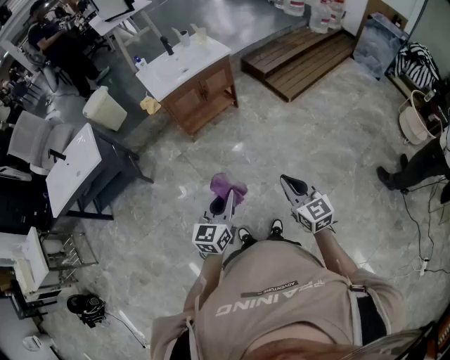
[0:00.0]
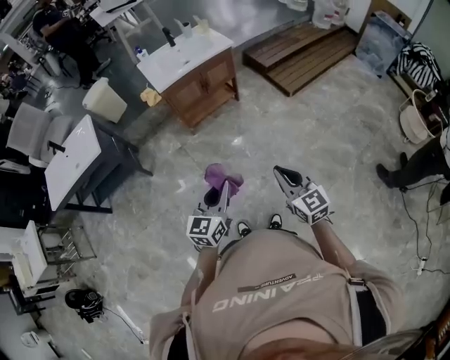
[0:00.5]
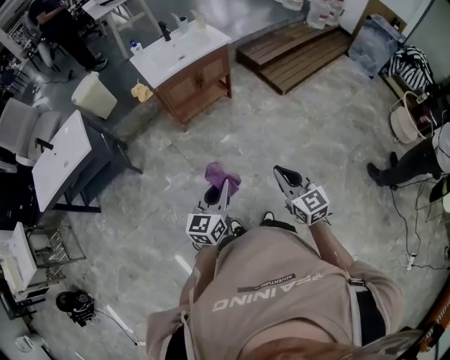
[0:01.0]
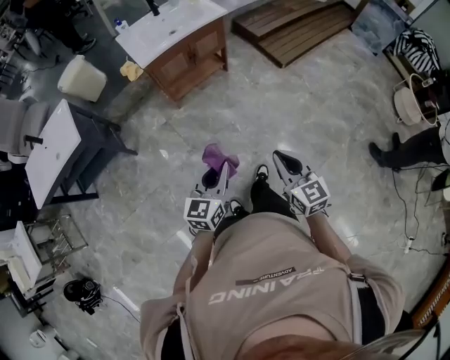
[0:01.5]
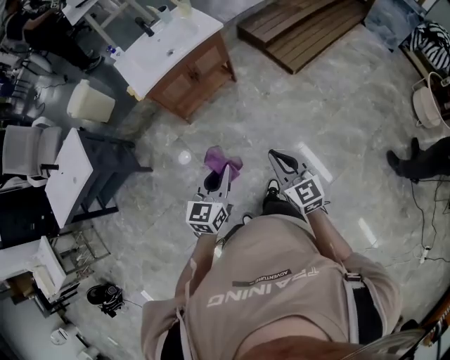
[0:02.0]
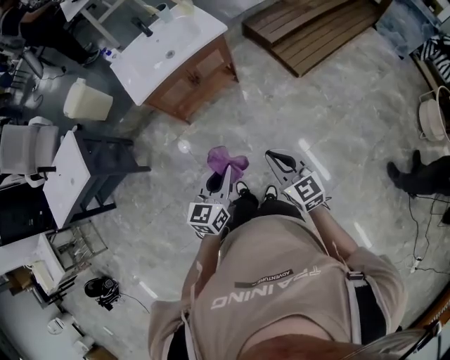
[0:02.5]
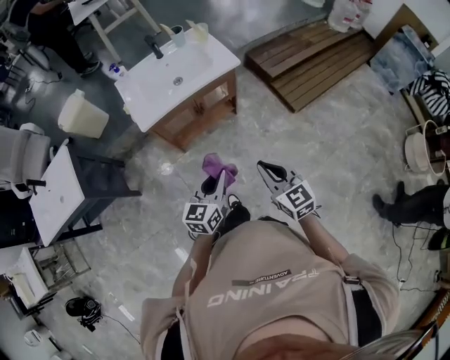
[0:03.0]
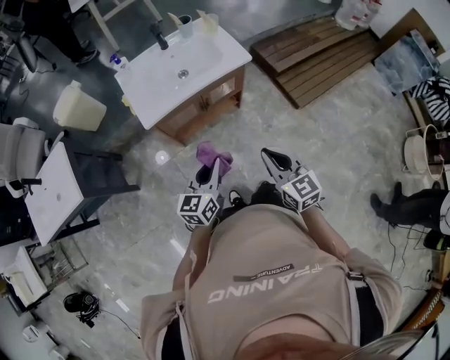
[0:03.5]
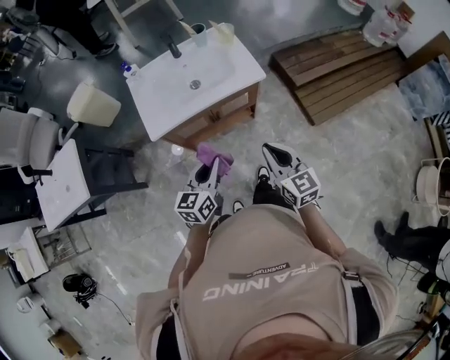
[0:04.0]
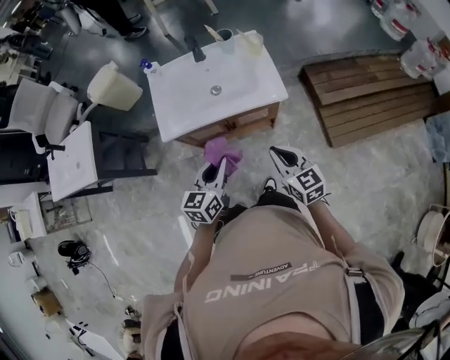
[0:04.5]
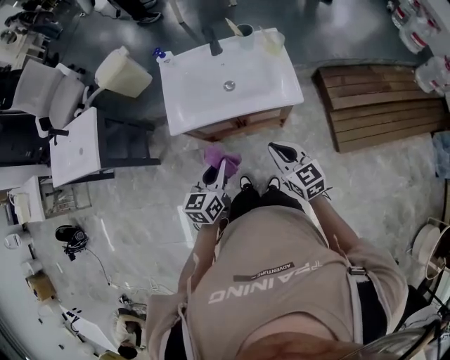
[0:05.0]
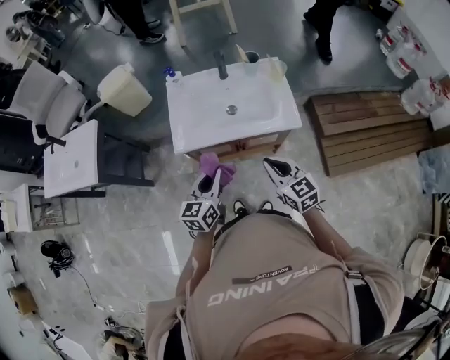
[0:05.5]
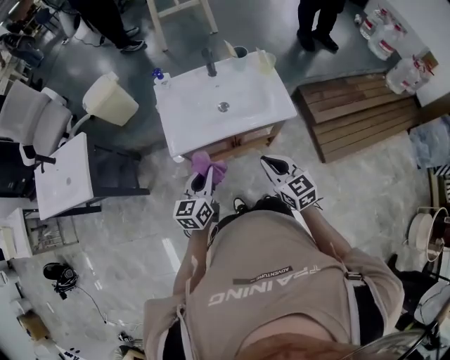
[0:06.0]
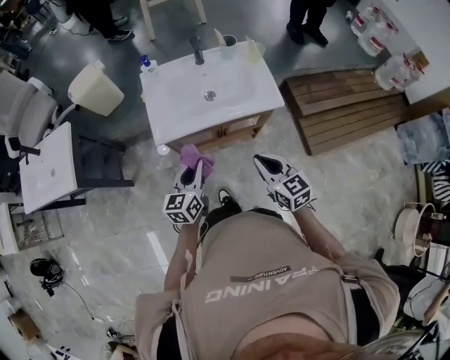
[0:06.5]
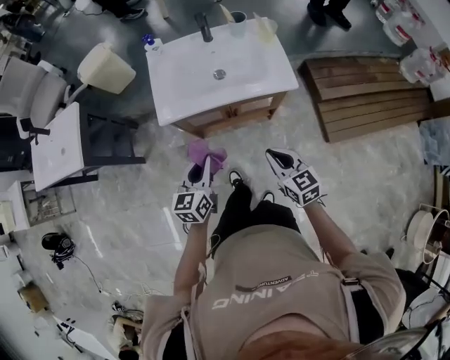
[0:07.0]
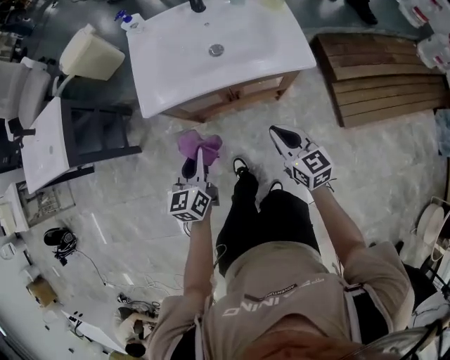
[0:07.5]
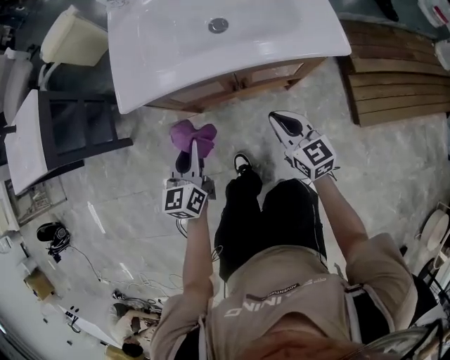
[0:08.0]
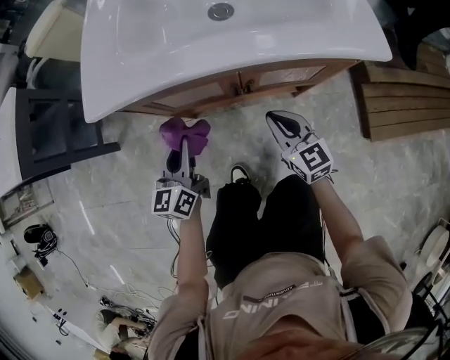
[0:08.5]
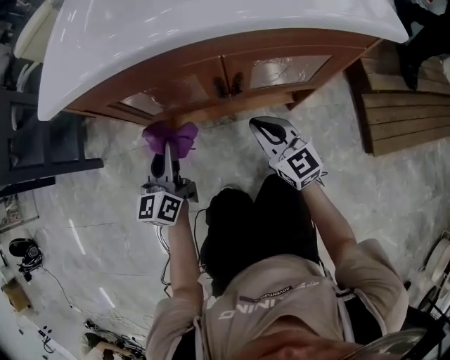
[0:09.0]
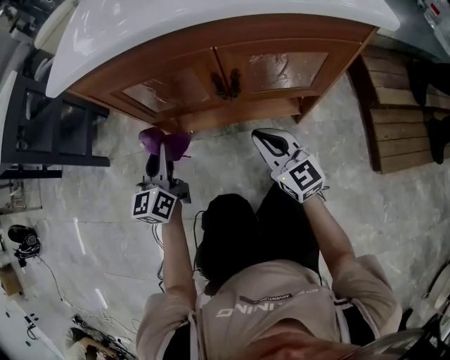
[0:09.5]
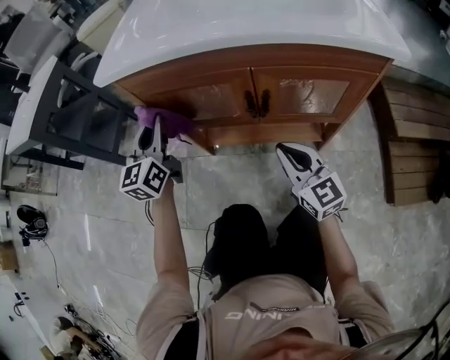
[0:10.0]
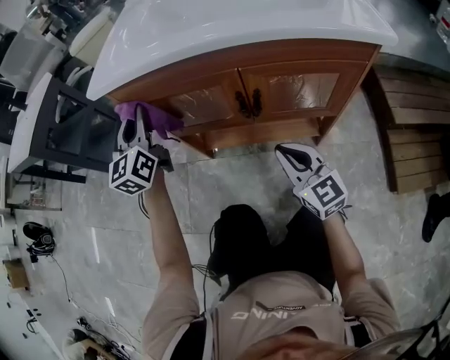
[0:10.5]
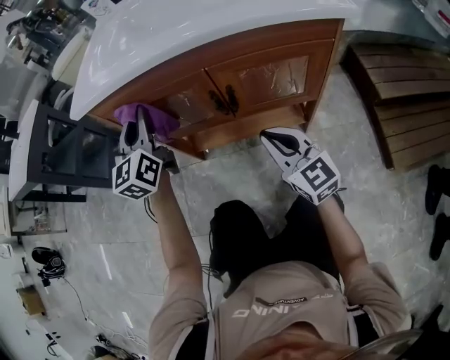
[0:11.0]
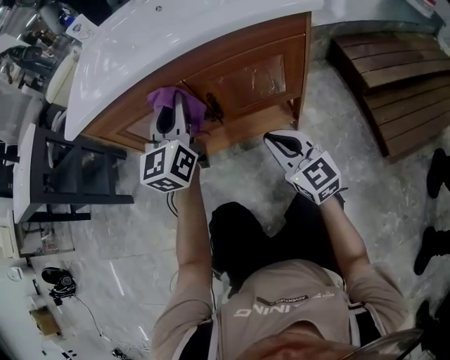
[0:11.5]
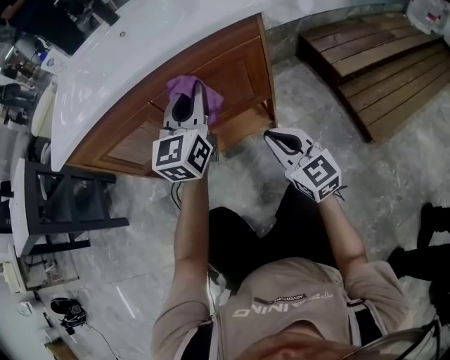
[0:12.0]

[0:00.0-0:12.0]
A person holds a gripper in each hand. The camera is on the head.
0:00.0 to 0:02.0: Both grippers move forward, approximately 25 cm.
0:02.0 to 0:04.0: Both grippers move forward, approximately 40 cm.
0:04.0 to 0:06.0: The two grippers go roughly 15 cm forward and to the left.
0:06.0 to 0:08.0: The grippers both shift downward by roughly 30 cm.
0:08.0 to 0:10.0: The right gripper shifts roughly 15 cm downward, and turns by some 20 degrees, while the left gripper is displaced forward, downward and to the left by some 15 cm, and swivels roughly 30 degrees.
0:10.0 to 0:12.0: The right gripper moves some 15 cm. Meanwhile the left gripper shifts by about 35 cm, and rotates roughly 30 degrees.

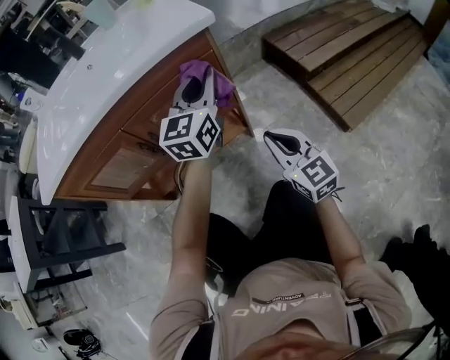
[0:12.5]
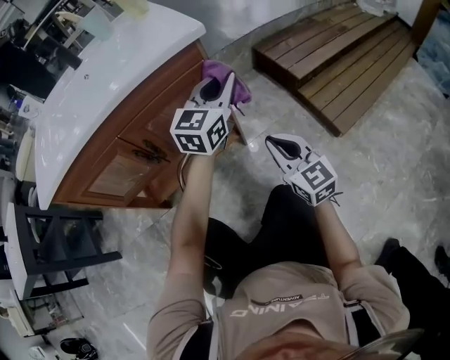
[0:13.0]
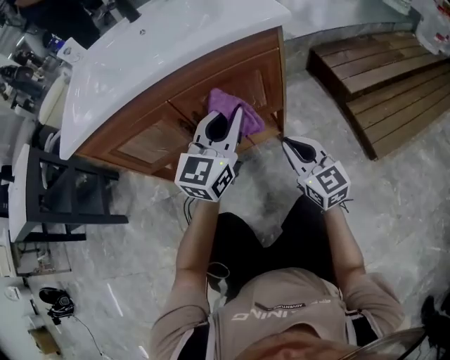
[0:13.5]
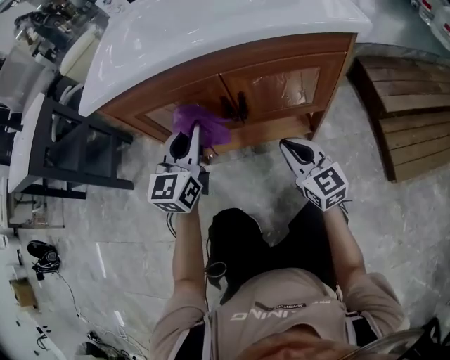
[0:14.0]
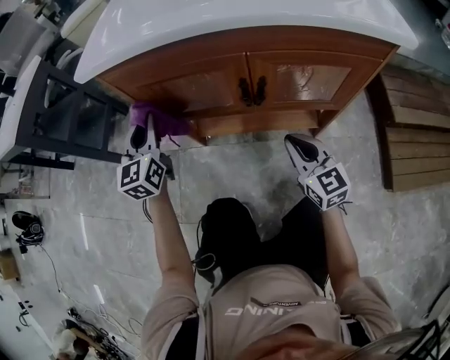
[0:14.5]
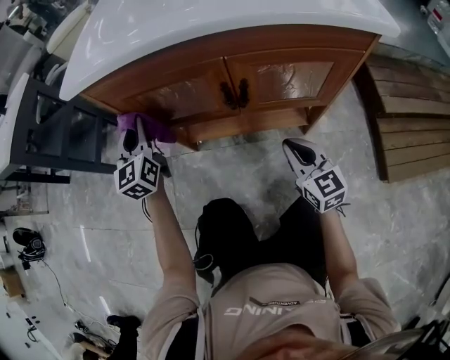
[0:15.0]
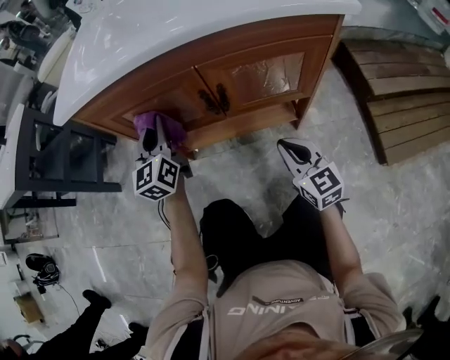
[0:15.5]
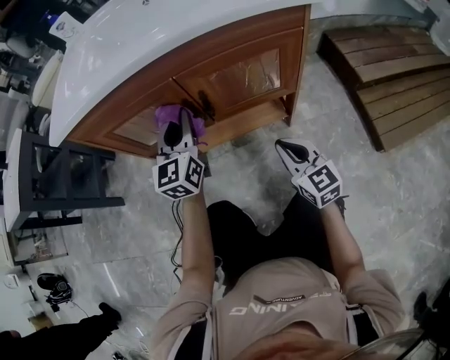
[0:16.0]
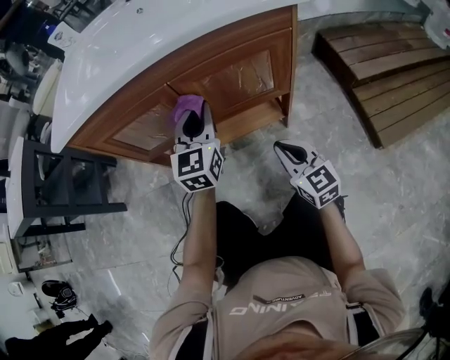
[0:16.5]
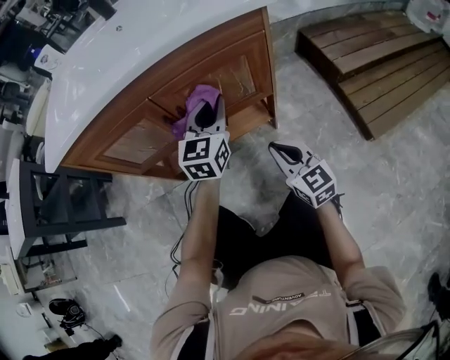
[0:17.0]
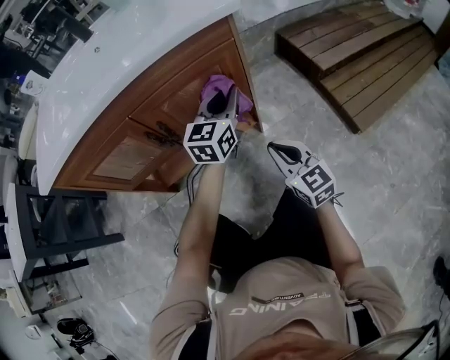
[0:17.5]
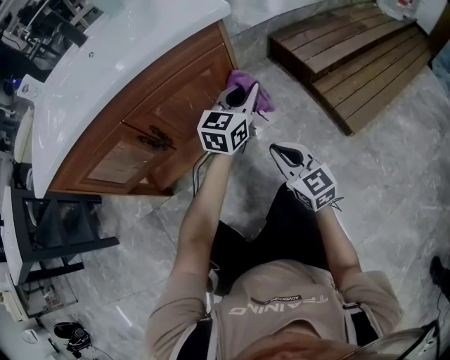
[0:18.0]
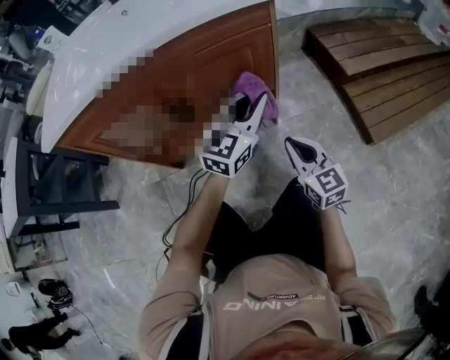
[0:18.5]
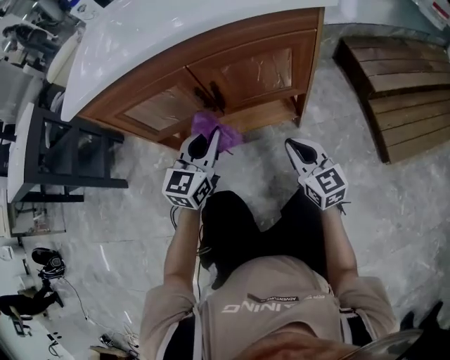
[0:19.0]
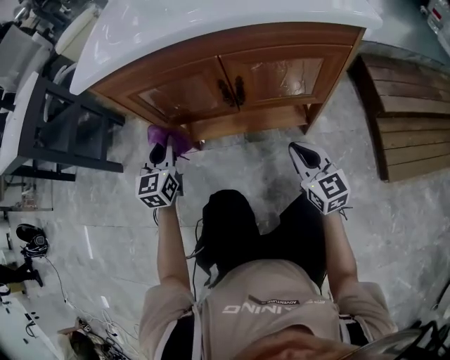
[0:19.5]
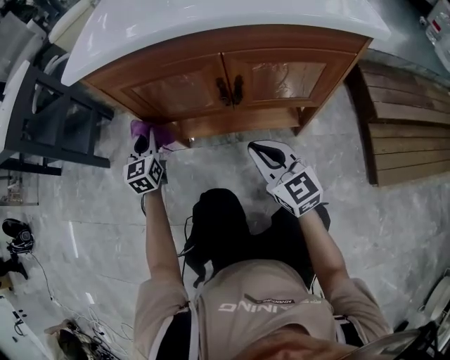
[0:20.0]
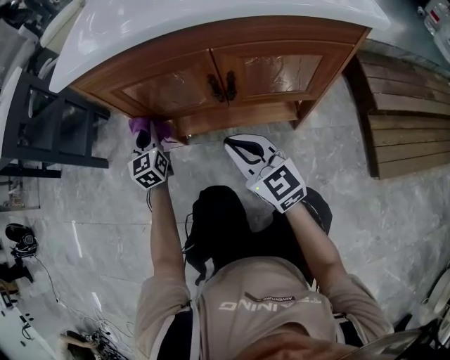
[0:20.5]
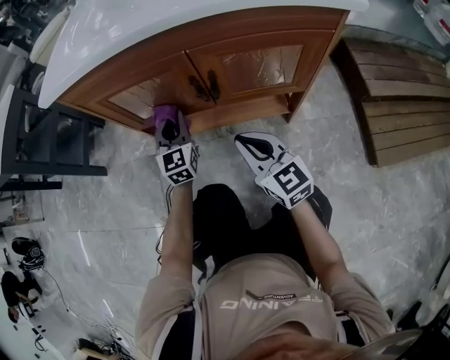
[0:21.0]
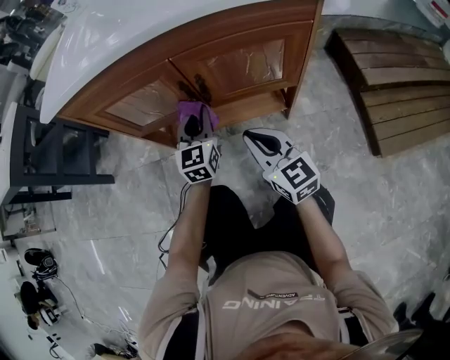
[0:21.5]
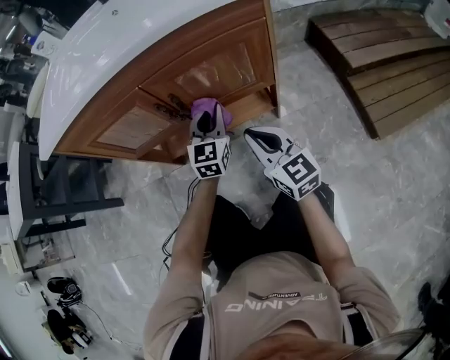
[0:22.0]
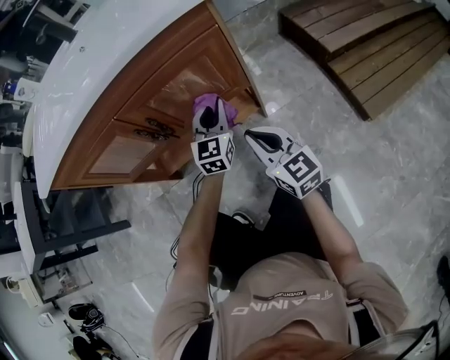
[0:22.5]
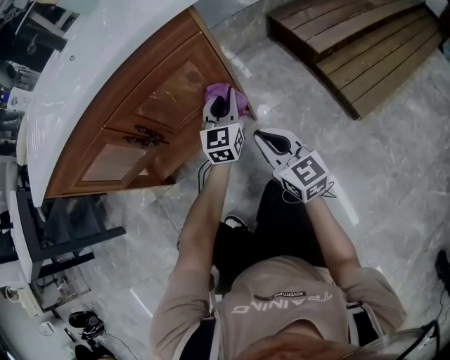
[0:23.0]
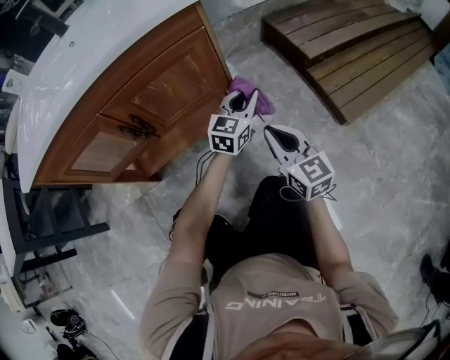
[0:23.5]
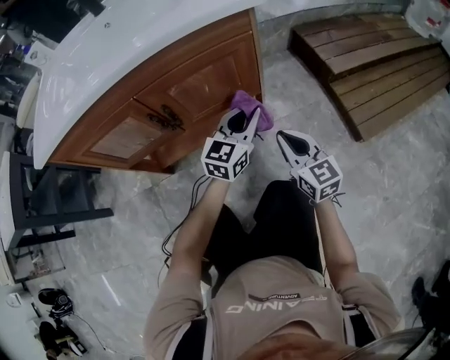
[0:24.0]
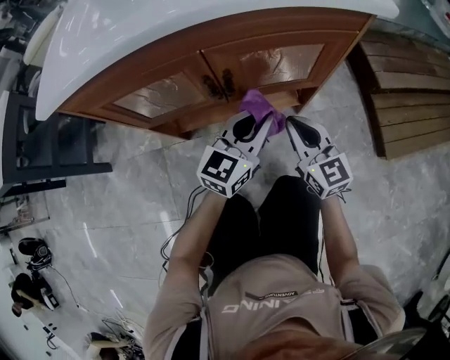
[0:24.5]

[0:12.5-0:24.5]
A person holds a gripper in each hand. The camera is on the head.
0:12.5 to 0:14.5: The left gripper shifts by some 50 cm, and rotates approximately 50 degrees, while the right gripper moves some 20 cm, and changes its angle by about 20 degrees.
0:14.5 to 0:16.5: The right gripper moves to the right and backward, approximately 10 cm; the left gripper heads to the right, covering about 30 cm, and rotates approximately 20 degrees.
0:16.5 to 0:18.5: The left gripper shifts by approximately 20 cm, and changes its angle by some 30 degrees, while the right gripper shifts by approximately 10 cm.
0:18.5 to 0:20.5: The right gripper changes place by some 25 cm, and rotates about 30 degrees. The left gripper changes place by roughly 50 cm, and swivels some 60 degrees.
0:20.5 to 0:22.5: The right gripper shifts by some 20 cm, and turns by roughly 30 degrees, while the left gripper moves approximately 40 cm, and changes its angle by about 40 degrees.
0:22.5 to 0:24.5: The right gripper is displaced to the left by about 5 cm. The left gripper goes approximately 10 cm backward and upward, travels to the right and back again, roughly 15 cm each way, and rotates some 20 degrees.

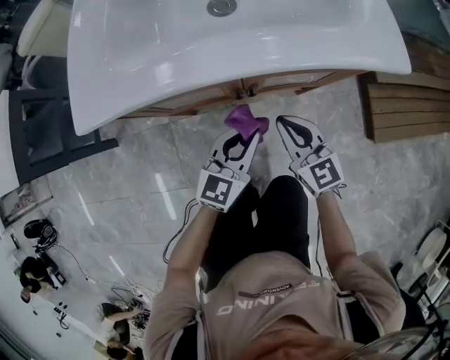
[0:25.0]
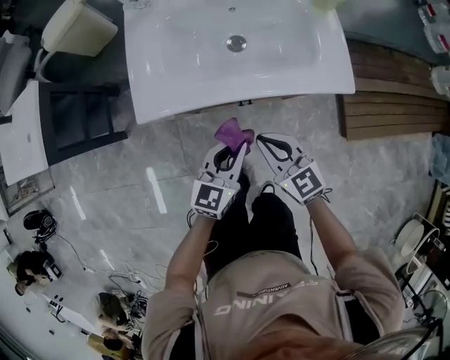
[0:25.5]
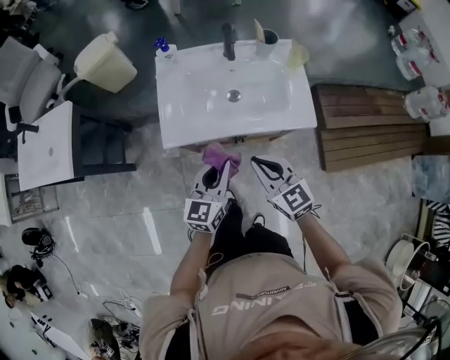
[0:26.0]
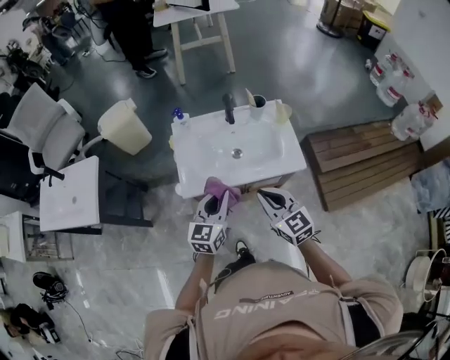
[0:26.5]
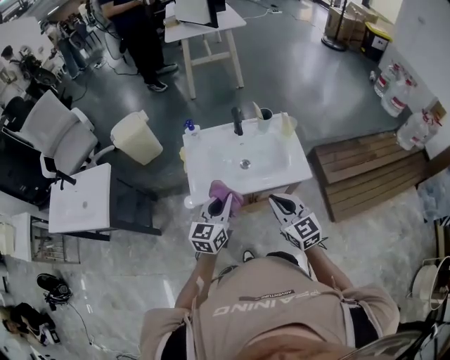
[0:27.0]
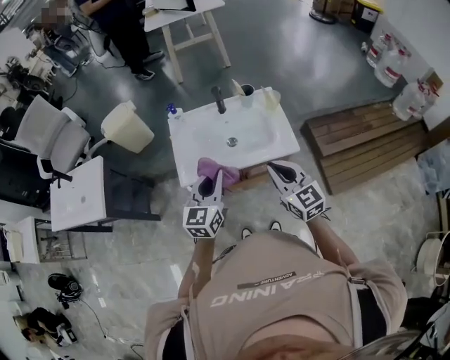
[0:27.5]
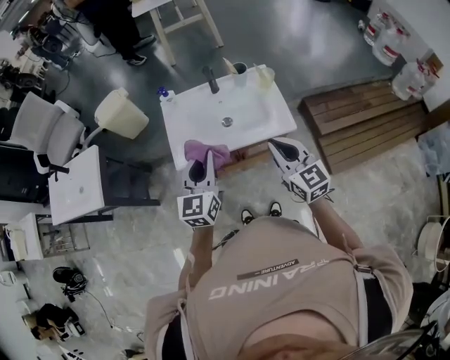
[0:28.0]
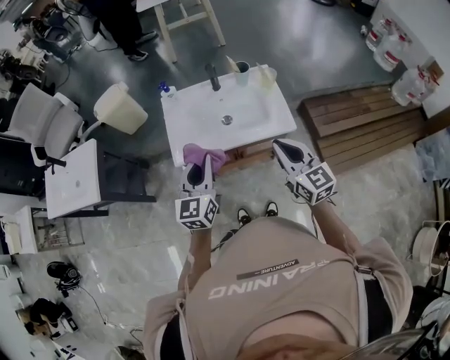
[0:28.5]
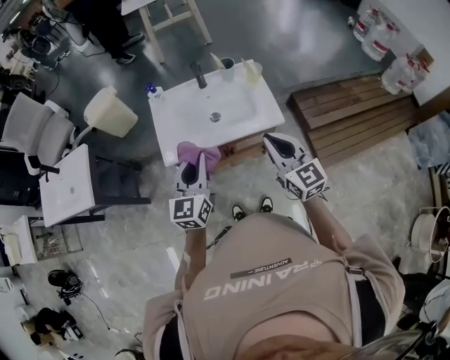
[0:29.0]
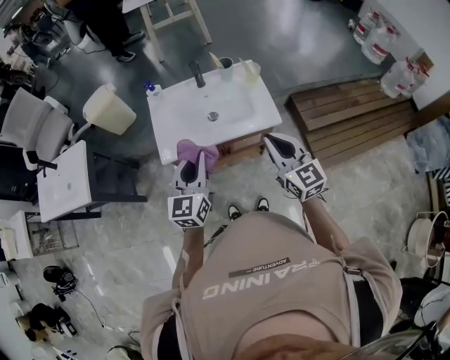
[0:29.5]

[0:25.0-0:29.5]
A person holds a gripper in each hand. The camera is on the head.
0:25.0 to 0:27.0: Both grippers travel together upward, roughly 50 cm.
0:27.0 to 0:29.5: The right gripper travels to the right and upward by about 15 cm, while the left gripper travels backward, upward and to the right by roughly 10 cm.
